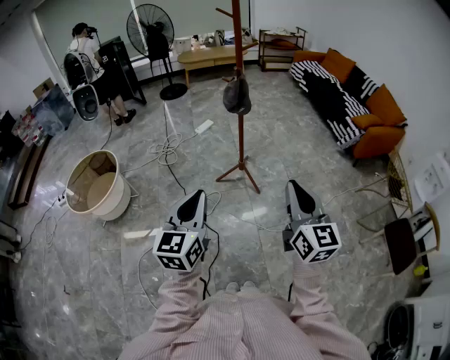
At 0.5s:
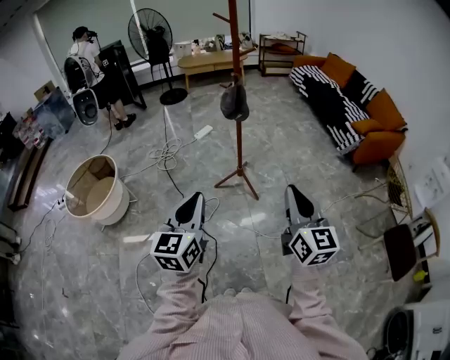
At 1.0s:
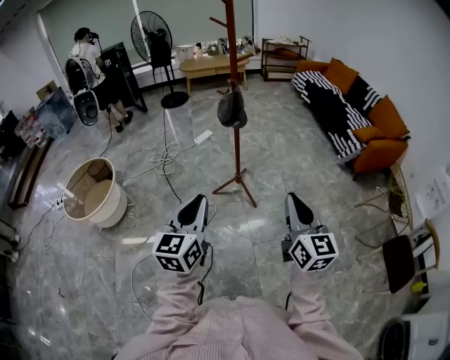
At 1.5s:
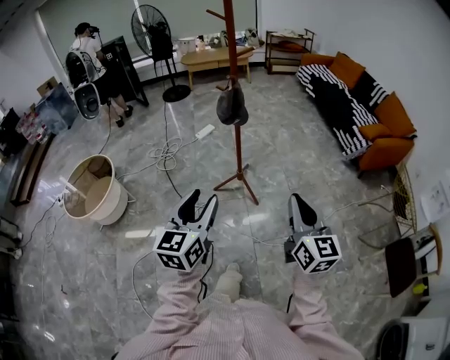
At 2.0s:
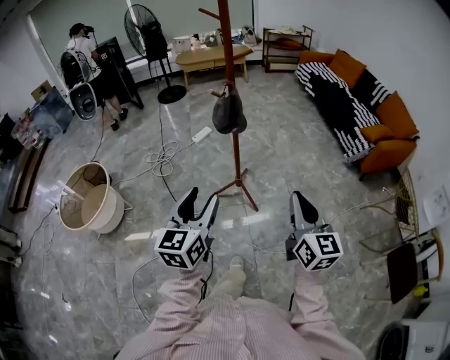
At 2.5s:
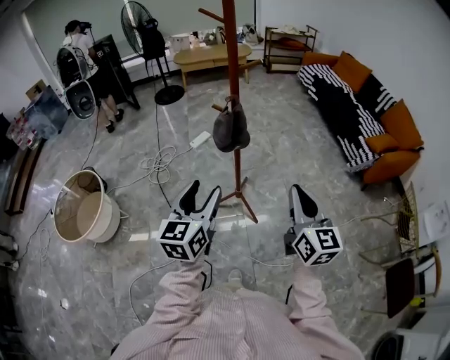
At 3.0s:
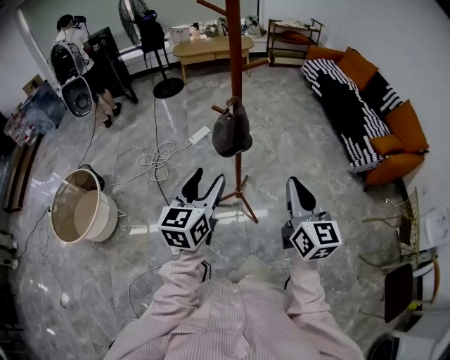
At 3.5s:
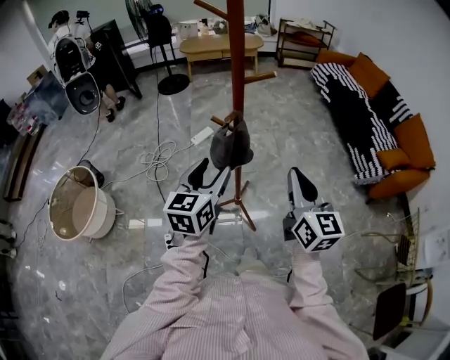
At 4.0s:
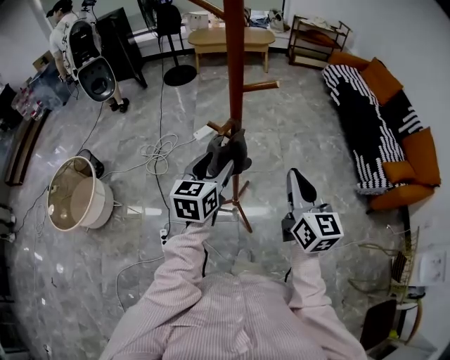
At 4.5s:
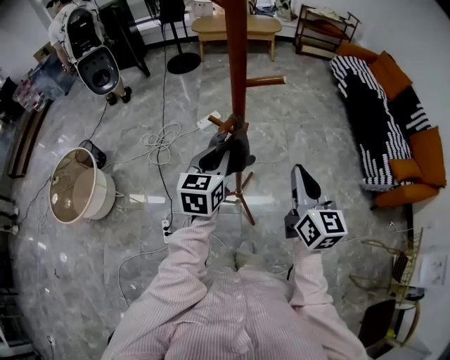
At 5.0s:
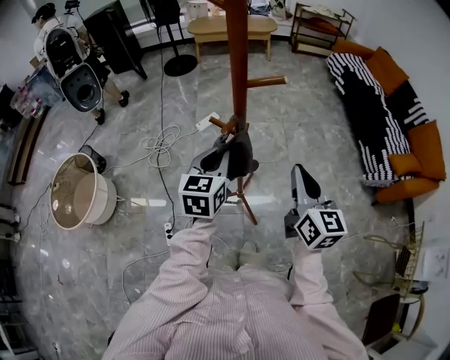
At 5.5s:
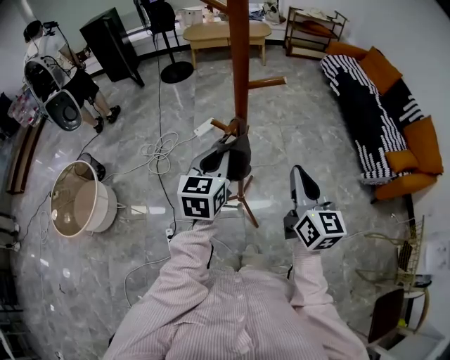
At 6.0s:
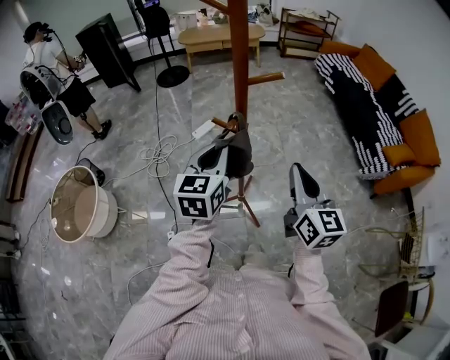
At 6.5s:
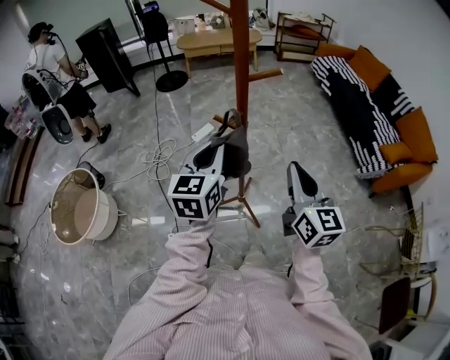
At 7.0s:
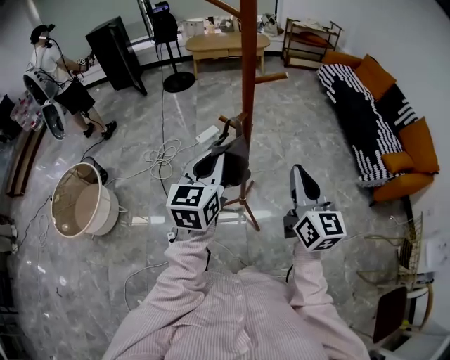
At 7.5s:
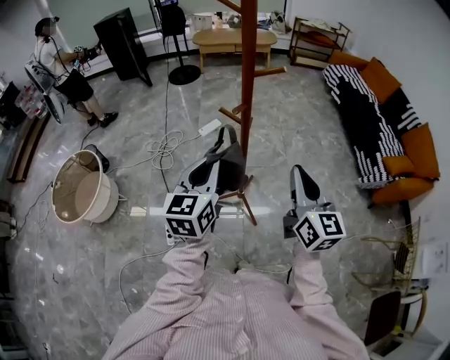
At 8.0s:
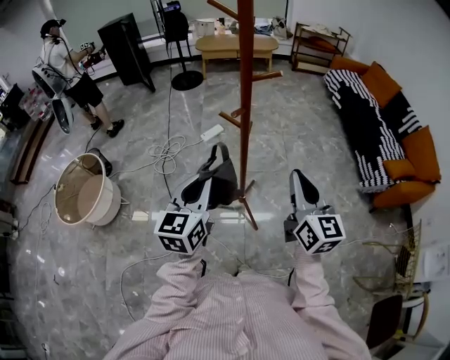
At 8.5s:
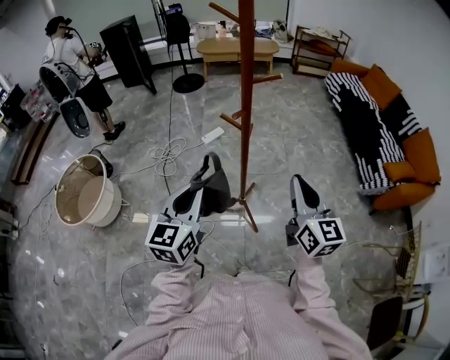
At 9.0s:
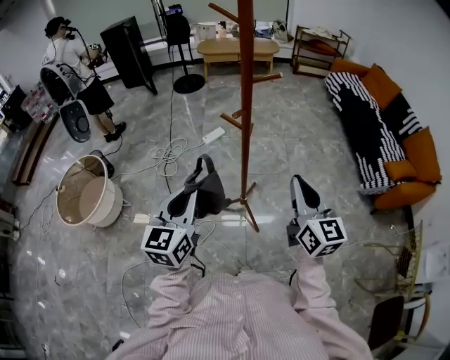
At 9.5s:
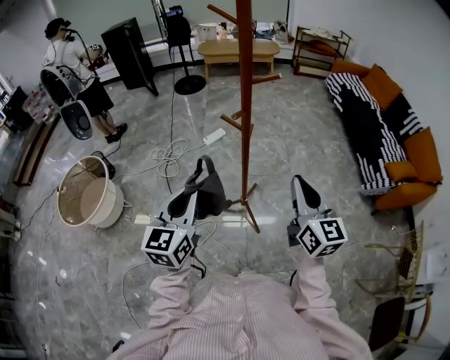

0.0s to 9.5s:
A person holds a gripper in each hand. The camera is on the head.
0.0s to 2.0s: Both grippers travel together forward, approximately 20 cm. The left gripper opens up.
2.0s to 4.0s: Both grippers move forward, approximately 40 cm.
4.0s to 5.5s: The left gripper closes its fingers.
5.5s to 7.5s: The right gripper is displaced backward by roughly 5 cm, while the left gripper travels backward by roughly 10 cm.
7.5s to 9.5s: The left gripper is displaced backward and to the left by approximately 10 cm.

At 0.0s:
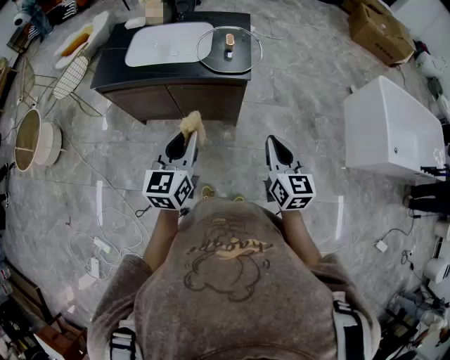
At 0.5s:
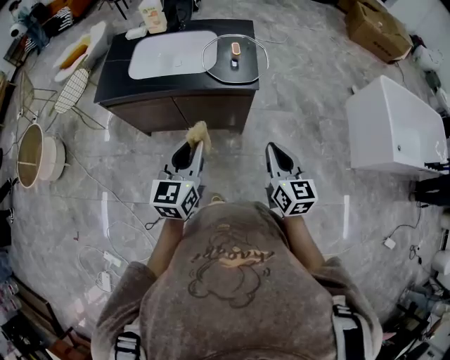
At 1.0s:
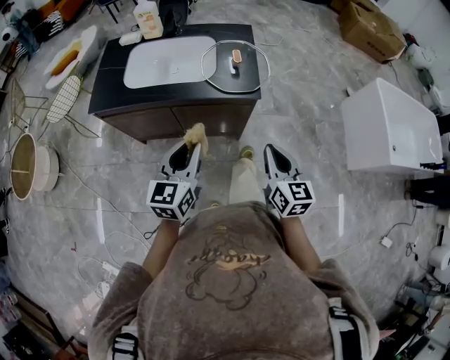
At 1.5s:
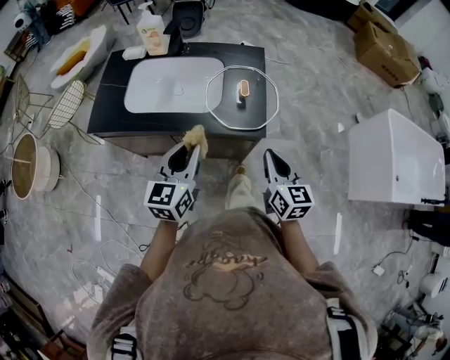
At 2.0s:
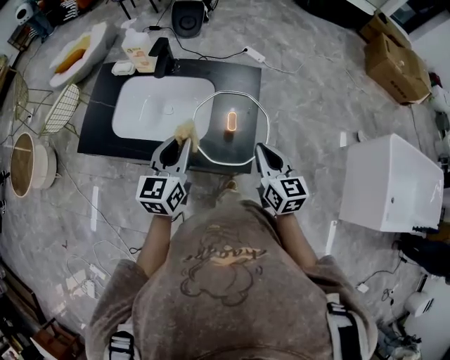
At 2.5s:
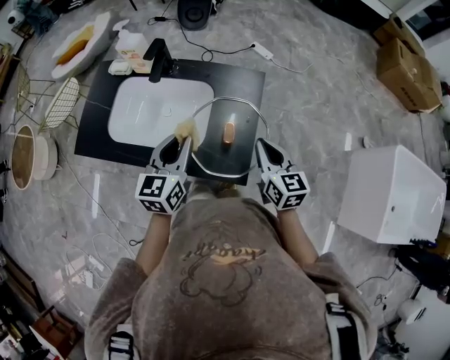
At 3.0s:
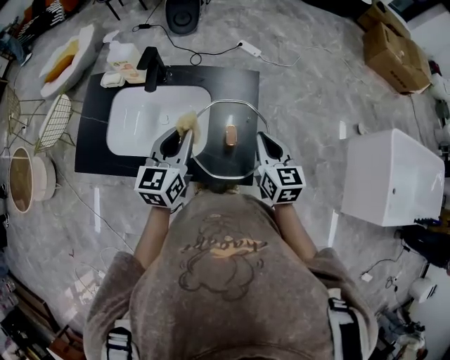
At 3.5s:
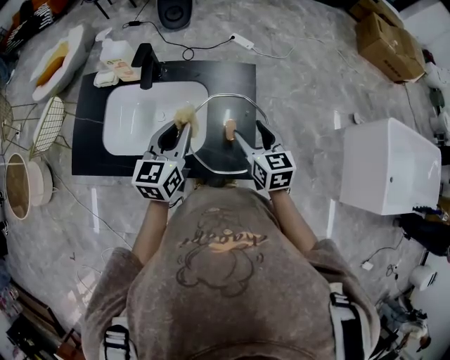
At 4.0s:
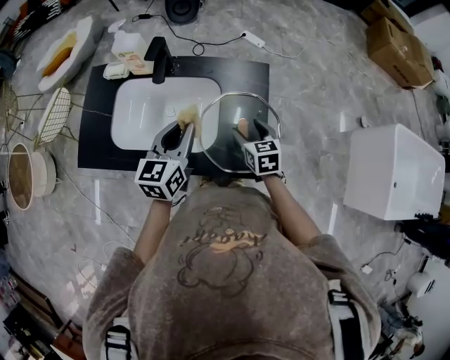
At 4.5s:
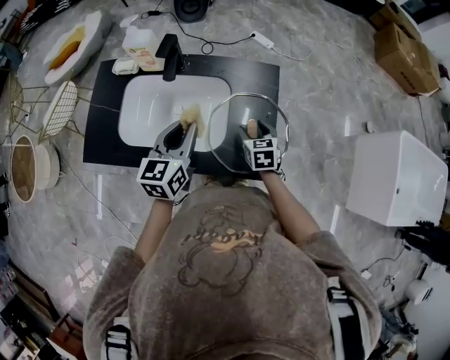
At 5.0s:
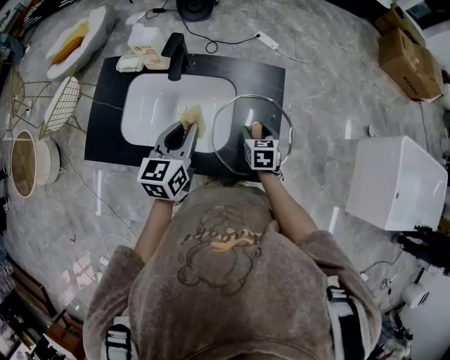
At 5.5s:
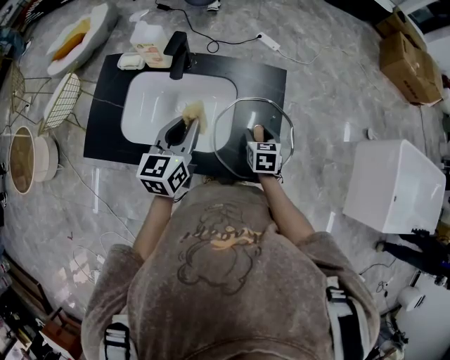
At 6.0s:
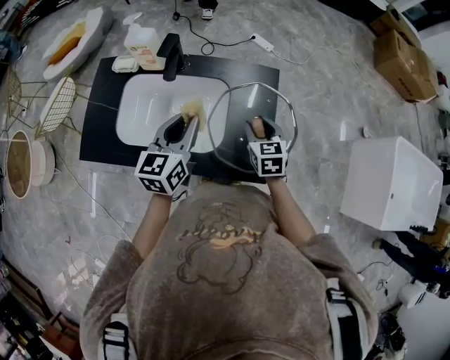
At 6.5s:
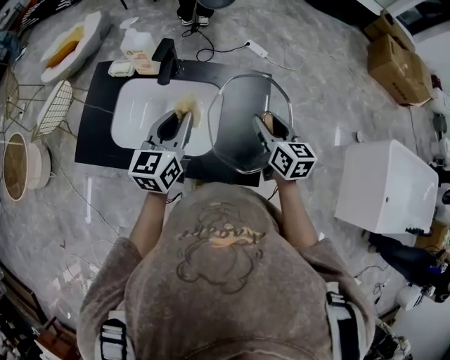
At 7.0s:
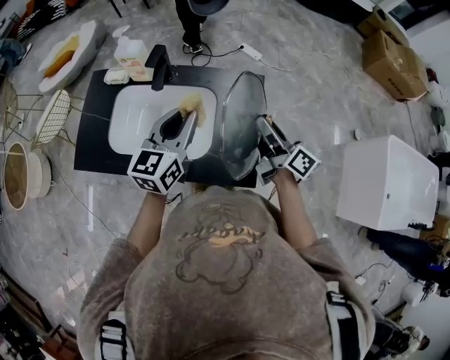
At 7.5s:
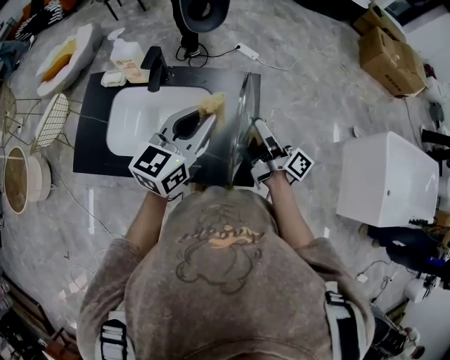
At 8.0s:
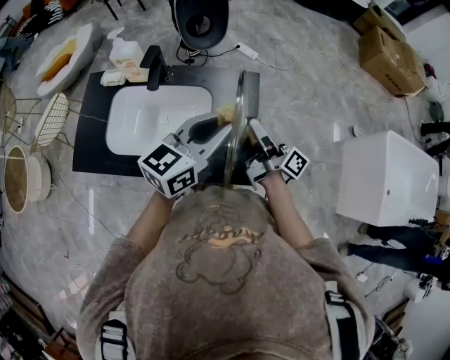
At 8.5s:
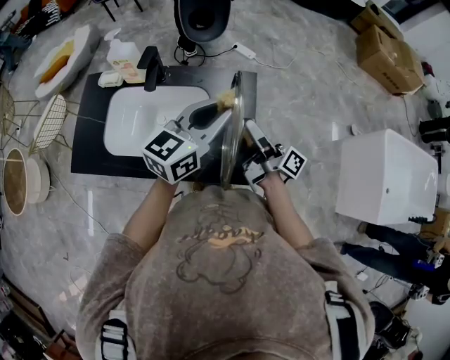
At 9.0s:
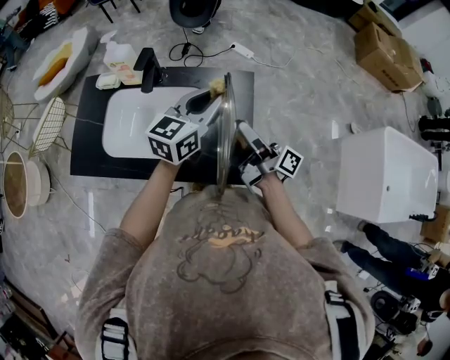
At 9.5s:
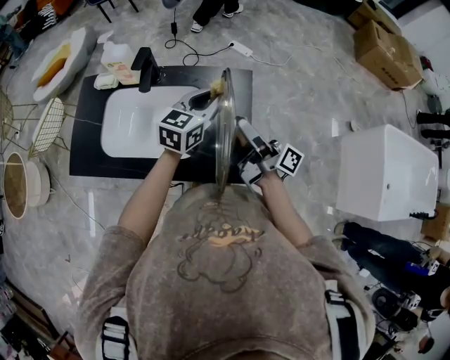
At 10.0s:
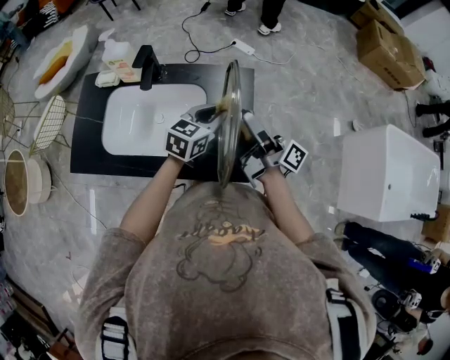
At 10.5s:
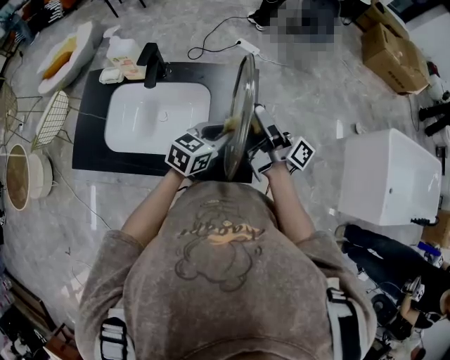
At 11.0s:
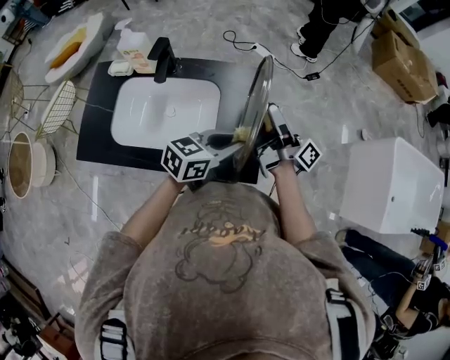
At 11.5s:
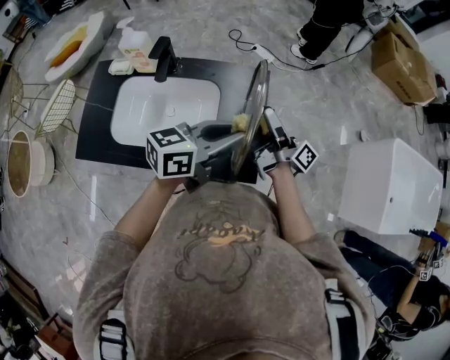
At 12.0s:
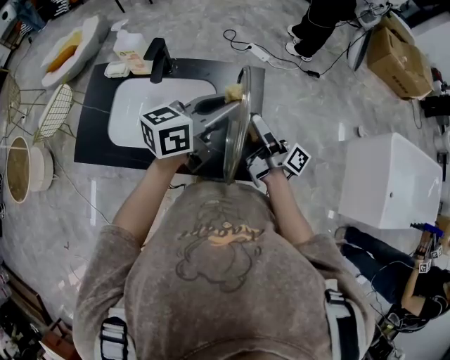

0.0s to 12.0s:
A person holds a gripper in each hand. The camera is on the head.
0.0s to 2.0s: Both grippers are carried forward, about 40 cm.
2.0s to 4.0s: The left gripper is displaced forward by approximately 10 cm; the right gripper travels forward, downward and to the left by some 20 cm, rotates approximately 20 degrees, and opens up.
4.0s to 6.0s: The right gripper closes up.
6.0s to 8.0s: The right gripper moves upward, roughly 10 cm, and tilts its fingers roughly 50 degrees upward; the left gripper heads to the right and upward, covering about 15 cm, and changes its angle by roughly 30 degrees.
8.0s to 10.0s: The left gripper is displaced downward and forward by about 15 cm, and turns by roughly 20 degrees.
10.0s to 12.0s: The left gripper shifts some 15 cm upward, and changes its angle by approximately 30 degrees.

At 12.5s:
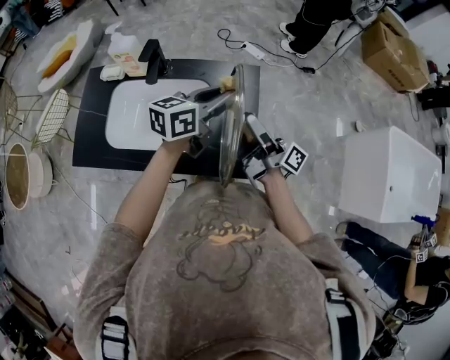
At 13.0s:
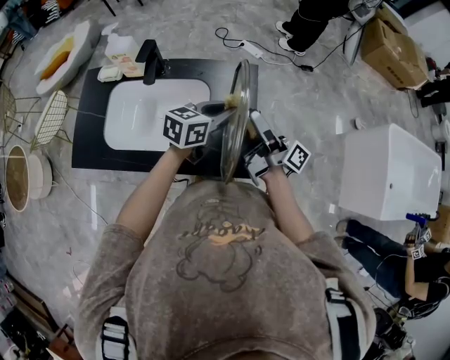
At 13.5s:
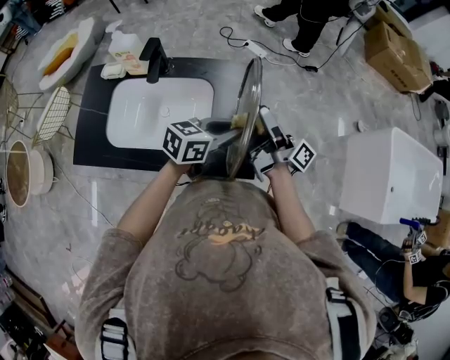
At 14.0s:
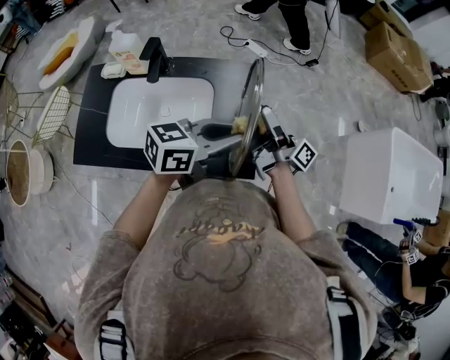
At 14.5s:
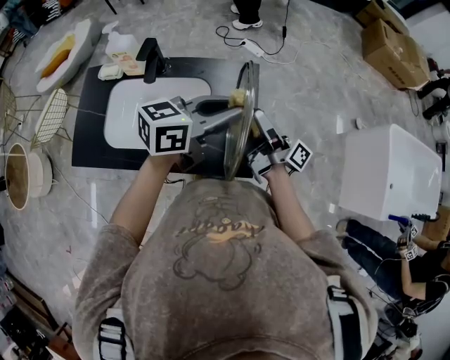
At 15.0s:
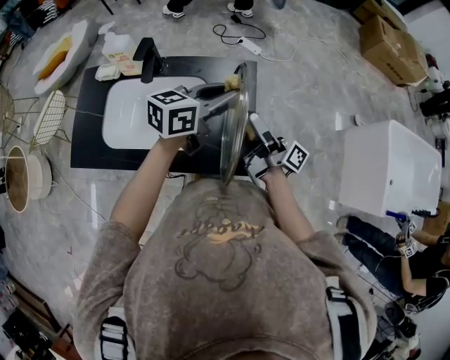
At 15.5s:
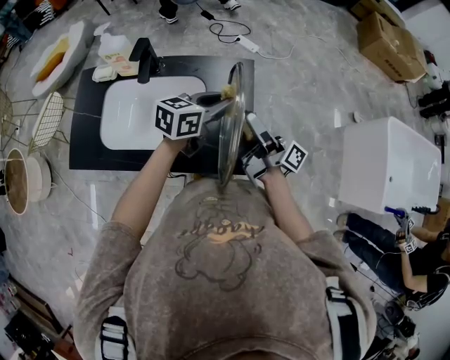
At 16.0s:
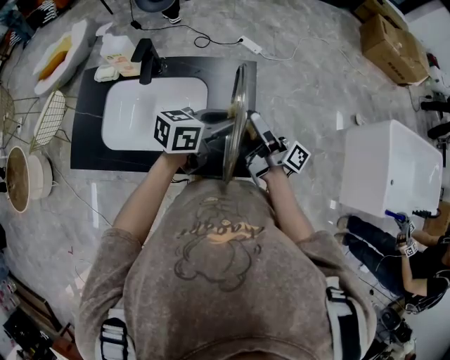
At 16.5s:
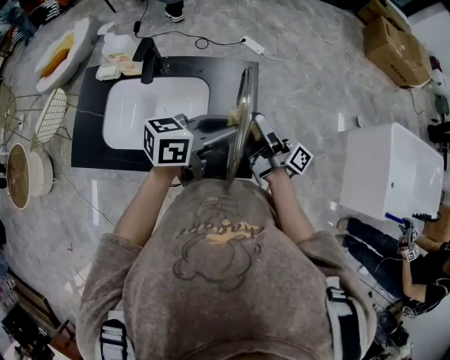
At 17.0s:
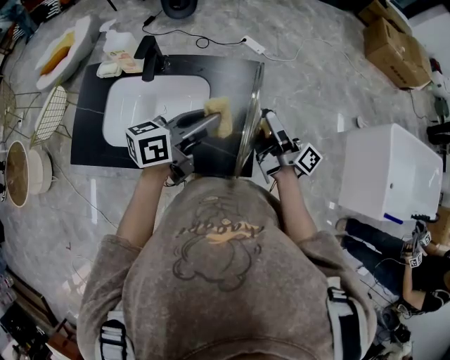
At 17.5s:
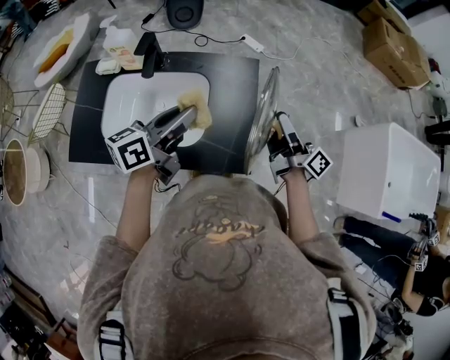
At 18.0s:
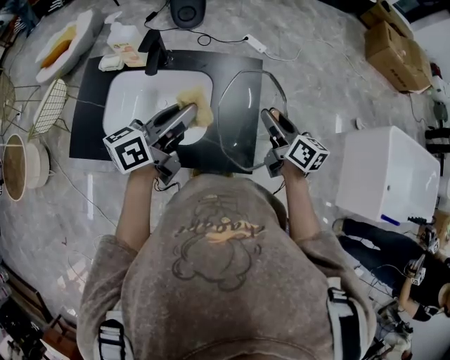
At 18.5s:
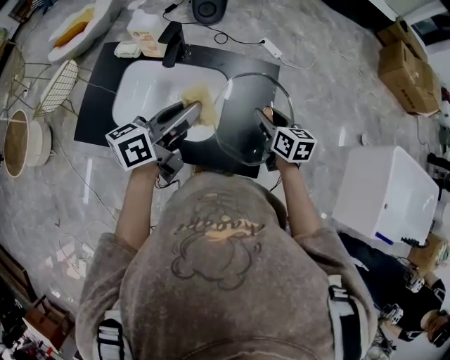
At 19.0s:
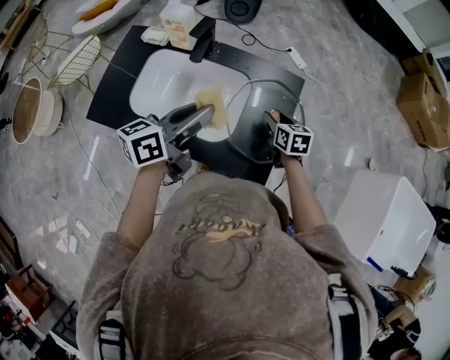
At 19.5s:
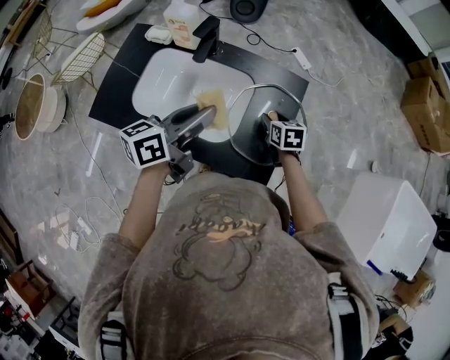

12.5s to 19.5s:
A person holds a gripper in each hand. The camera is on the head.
12.5s to 14.5s: The left gripper shifts about 5 cm backward and upward.
14.5s to 16.0s: The left gripper is displaced downward by roughly 10 cm.
16.0s to 17.5s: The left gripper travels to the left and upward by approximately 10 cm, and turns by about 30 degrees, while the right gripper goes roughly 10 cm to the right.
17.5s to 19.5s: The left gripper heads to the left, covering some 5 cm; the right gripper heads downward, to the left and forward, covering about 25 cm, and points its fingers some 60 degrees further downward.
